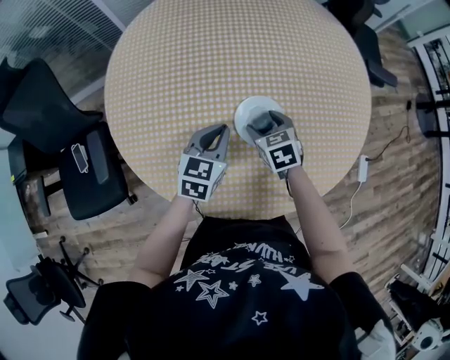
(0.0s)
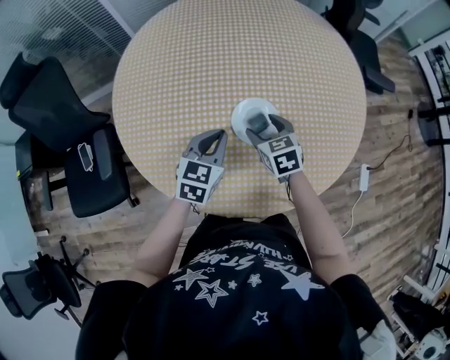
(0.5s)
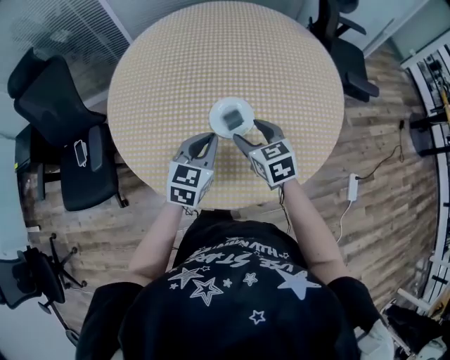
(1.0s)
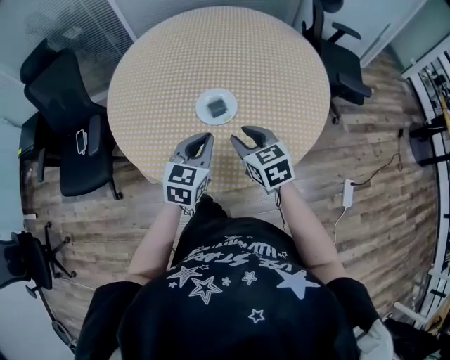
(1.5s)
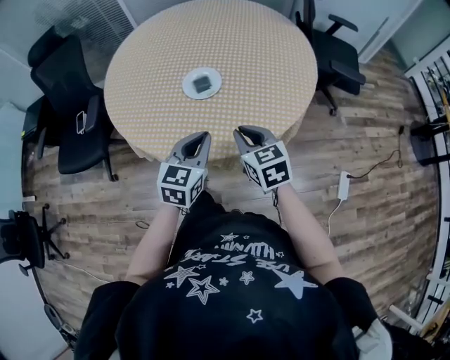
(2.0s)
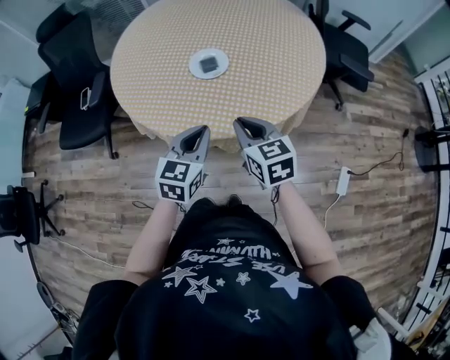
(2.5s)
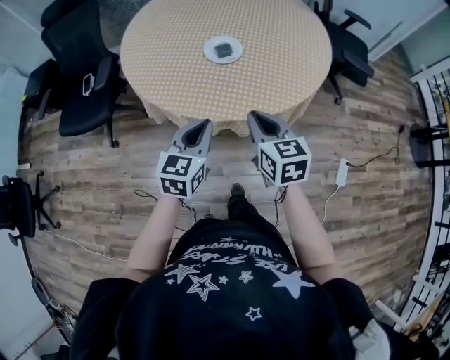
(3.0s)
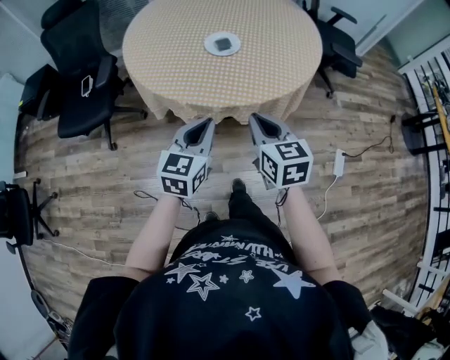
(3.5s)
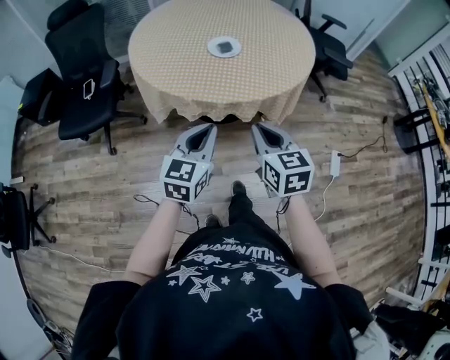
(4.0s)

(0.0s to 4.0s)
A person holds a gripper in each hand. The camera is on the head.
0.0s - 2.0s: The left gripper moves backward and to the right, roughly 30 cm. Meanwhile the right gripper travels backward, to the right and upward by about 30 cm, swivels about 20 degrees, and closes its fingers.
2.0s - 4.0s: The left gripper shifts some 25 cm backward and to the left, while the right gripper moves backward, roughly 25 cm.

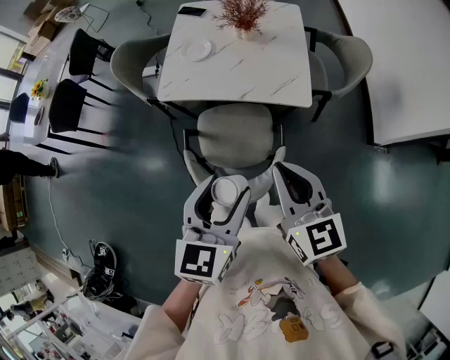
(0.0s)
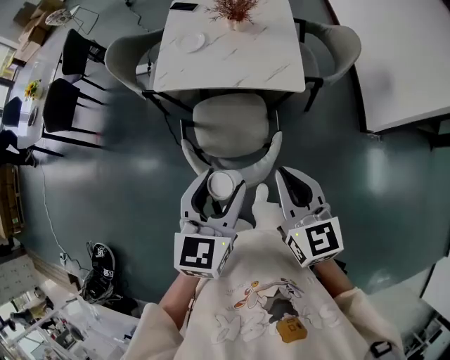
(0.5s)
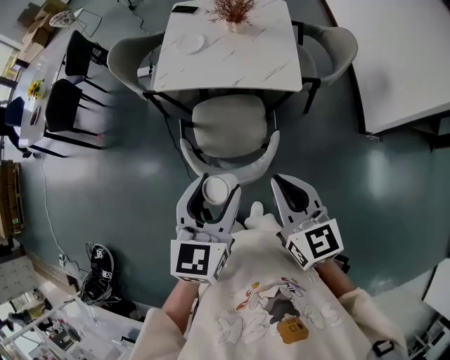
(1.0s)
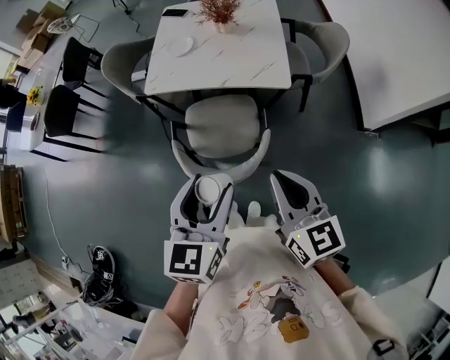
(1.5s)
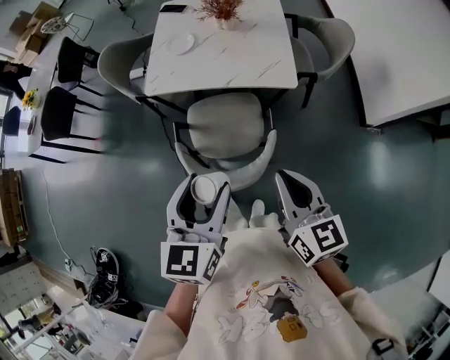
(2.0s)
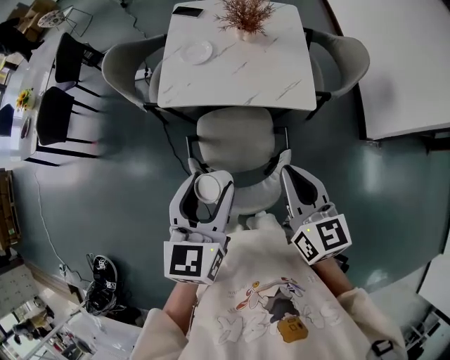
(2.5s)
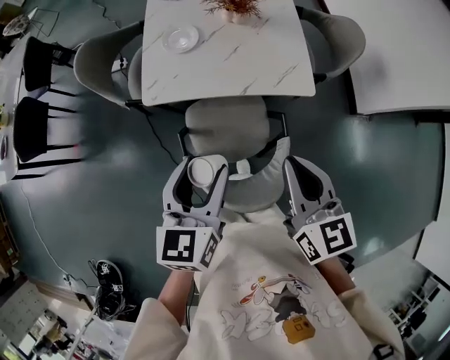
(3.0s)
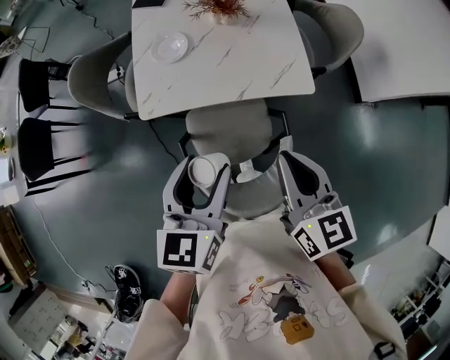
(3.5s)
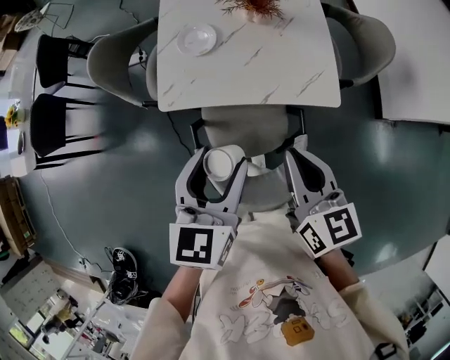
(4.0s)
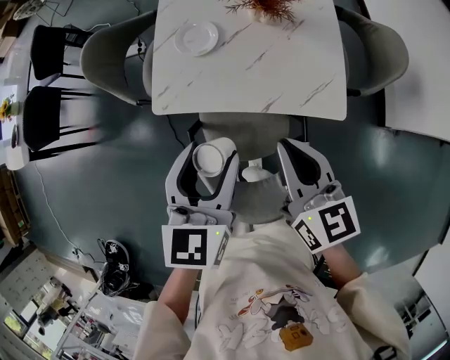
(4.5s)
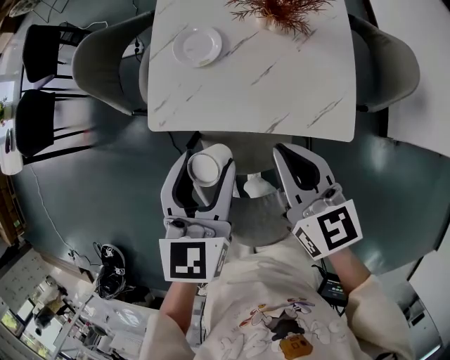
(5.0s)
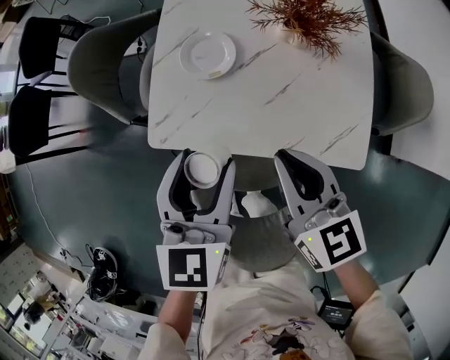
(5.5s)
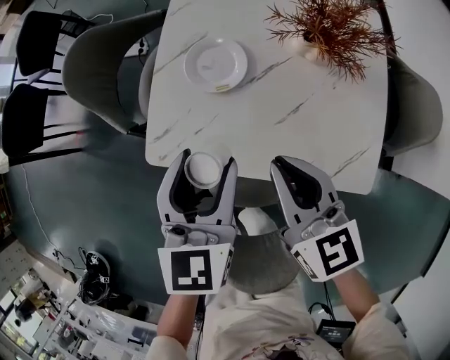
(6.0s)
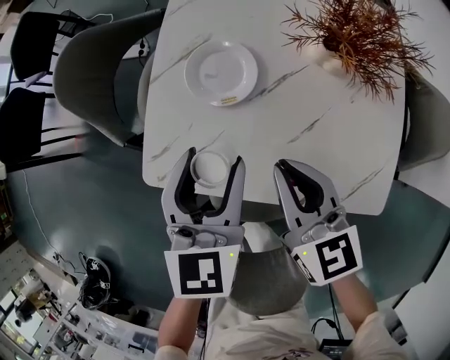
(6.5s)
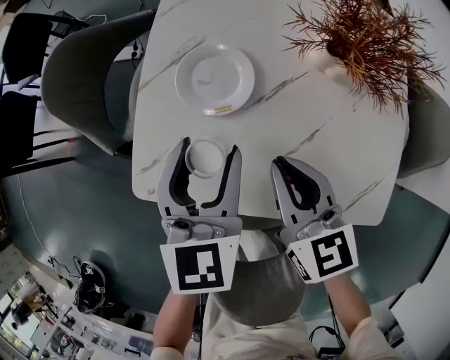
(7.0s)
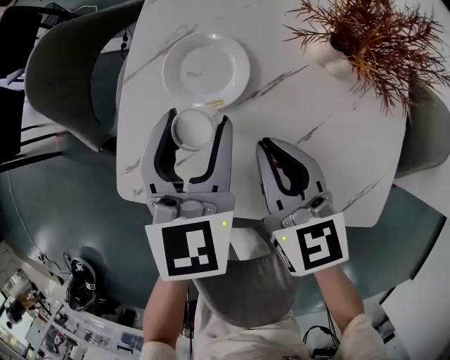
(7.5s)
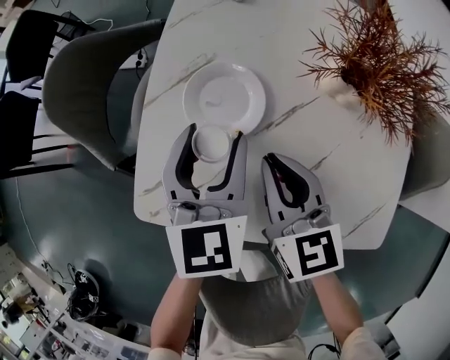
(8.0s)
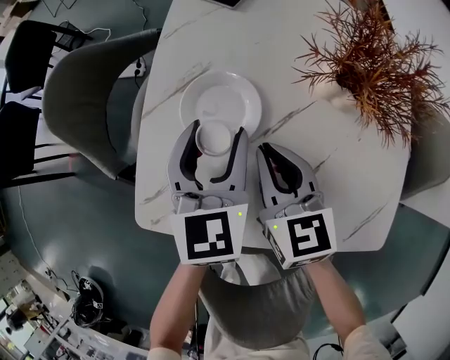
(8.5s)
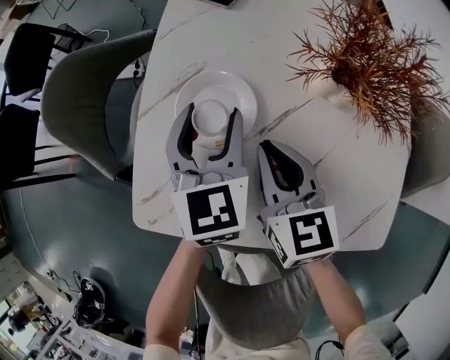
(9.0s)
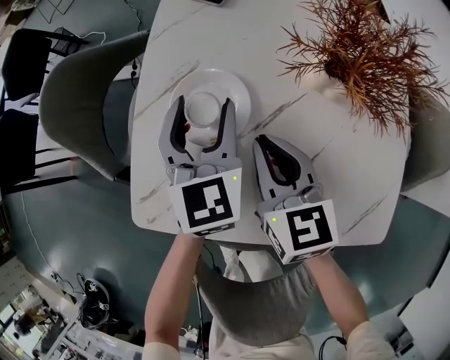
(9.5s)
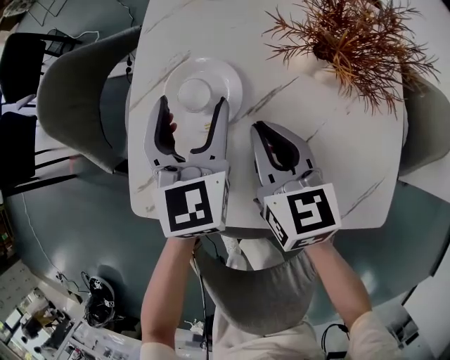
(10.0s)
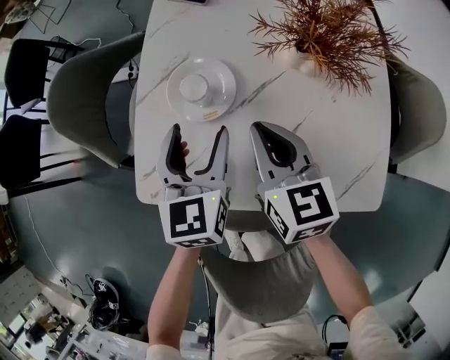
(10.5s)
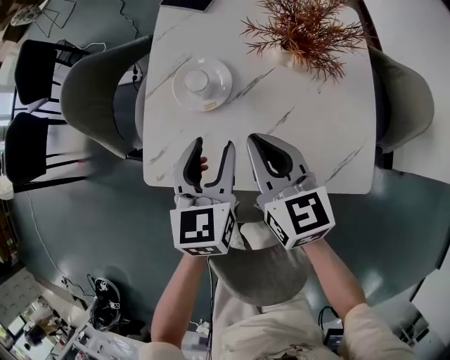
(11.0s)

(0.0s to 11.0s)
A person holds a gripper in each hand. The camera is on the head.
0.0s - 2.0s: The right gripper heads backward, covering approximately 10 cm. Meanwhile the left gripper ends up some 5 cm from where it was.
2.0s - 3.5s: Both grippers move forward and to the left, about 25 cm.
3.5s - 5.5s: Both grippers travel together forward and downward, about 25 cm. The right gripper swivels some 20 degrees.
5.5s - 7.5s: The right gripper travels downward and forward by approximately 20 cm; the left gripper shifts about 20 cm forward and downward.
7.5s - 9.0s: The two grippers go approximately 5 cm forward.
9.0s - 11.0s: The left gripper heads backward, covering approximately 15 cm, while the right gripper shifts about 15 cm upward and backward.

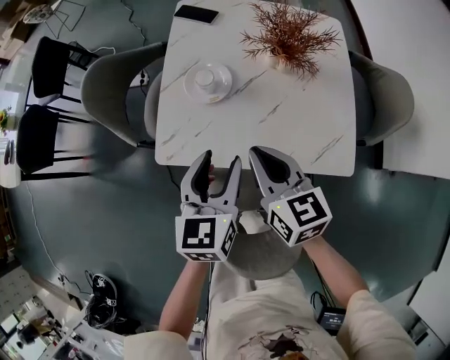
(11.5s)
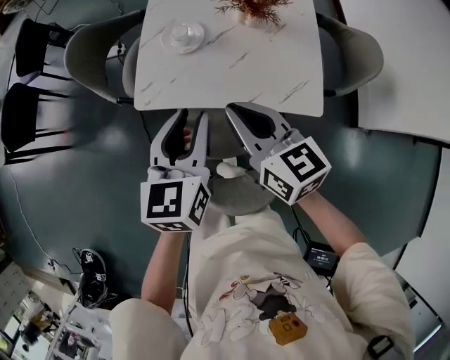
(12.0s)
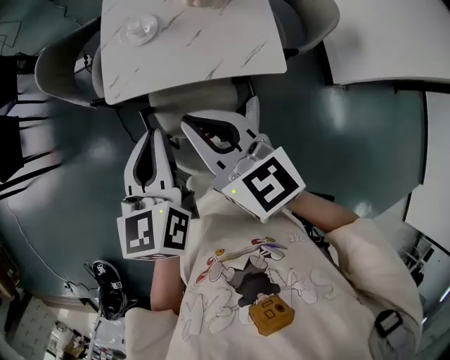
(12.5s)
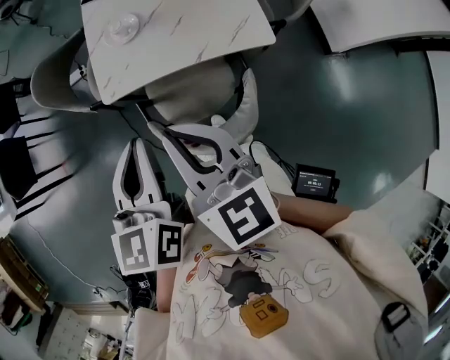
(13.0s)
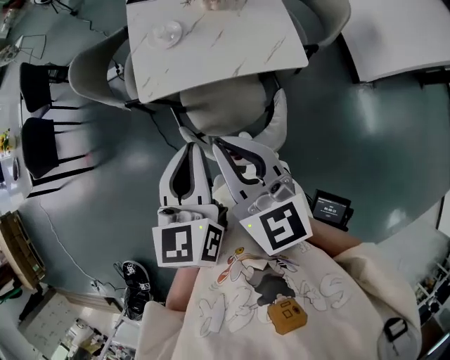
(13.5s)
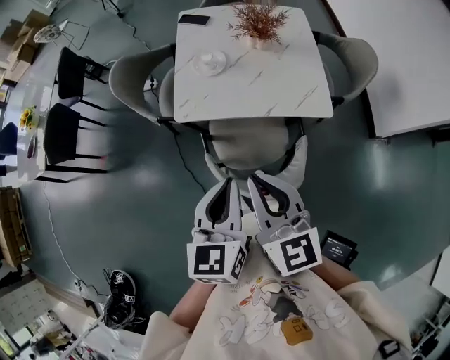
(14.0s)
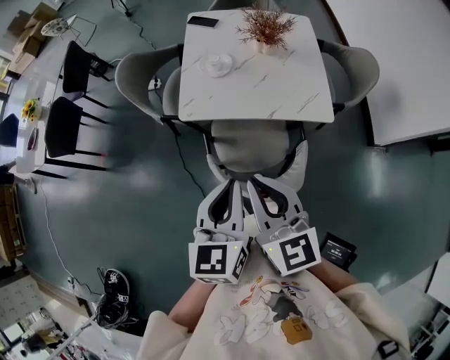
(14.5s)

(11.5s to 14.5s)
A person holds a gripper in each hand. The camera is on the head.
11.5s - 13.0s: The two grippers go approximately 30 cm backward and upward. The left gripper closes its fingers.
13.0s - 14.5s: The left gripper is displaced backward by roughly 5 cm.

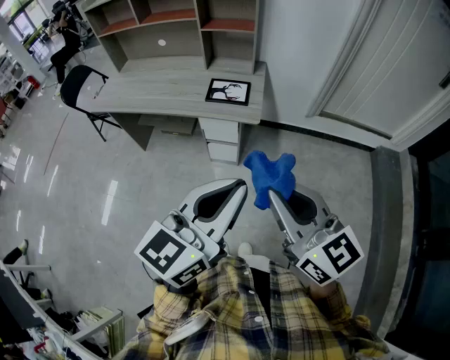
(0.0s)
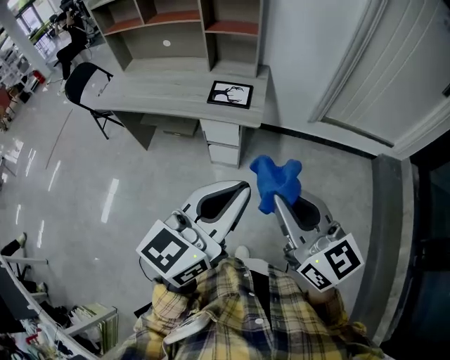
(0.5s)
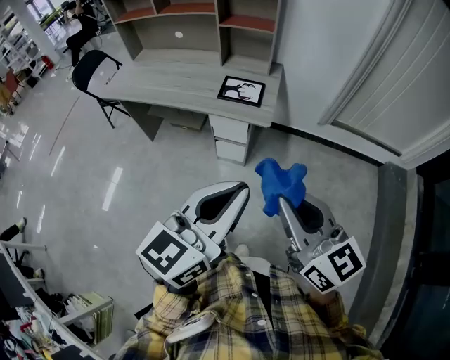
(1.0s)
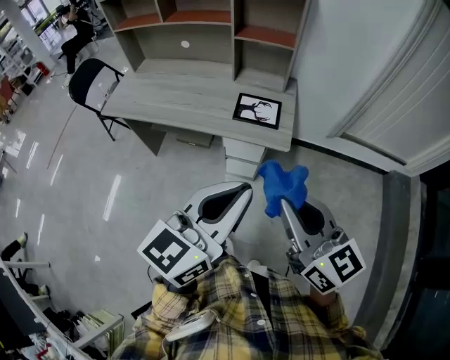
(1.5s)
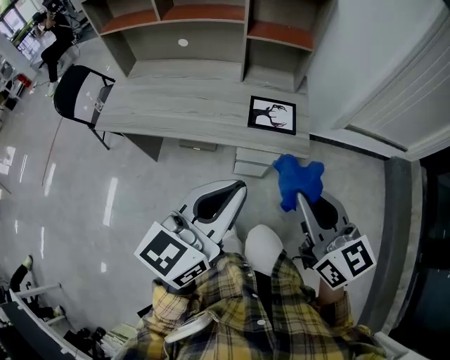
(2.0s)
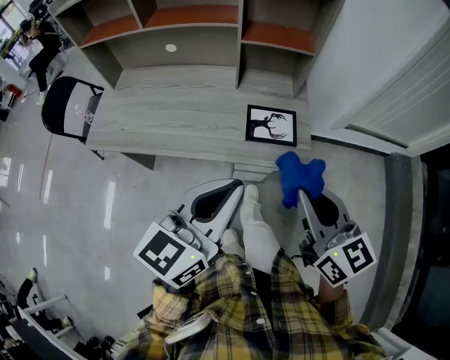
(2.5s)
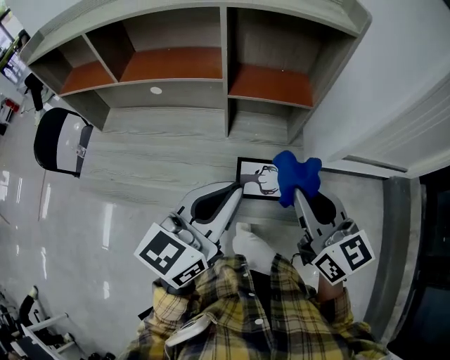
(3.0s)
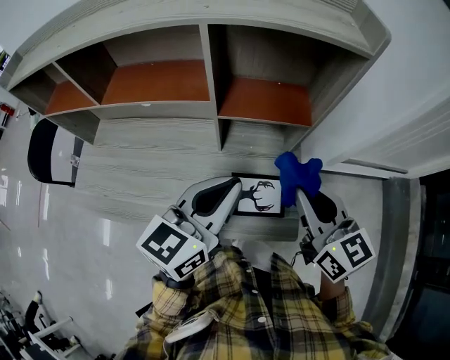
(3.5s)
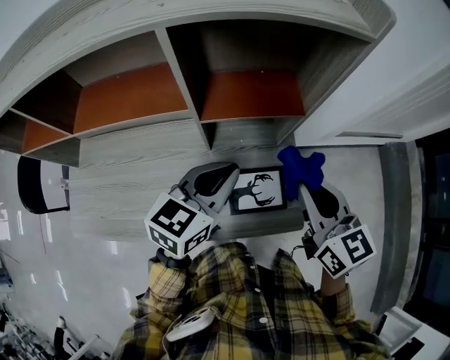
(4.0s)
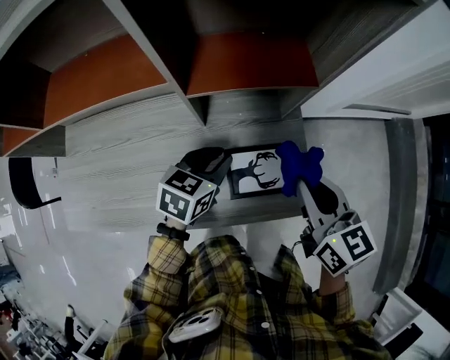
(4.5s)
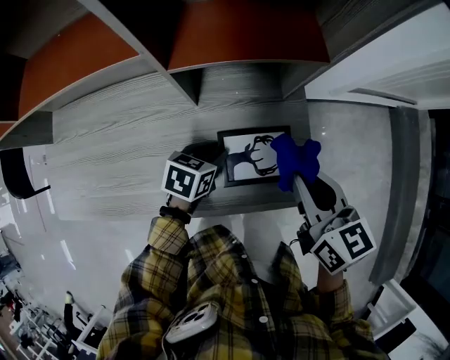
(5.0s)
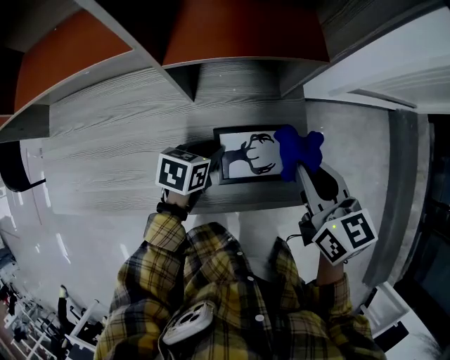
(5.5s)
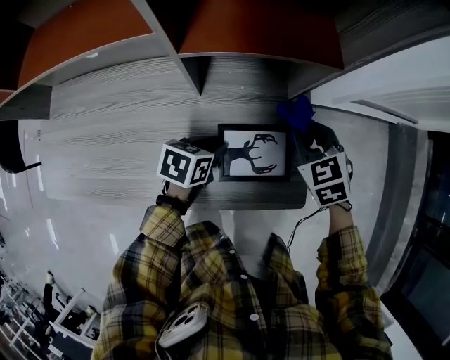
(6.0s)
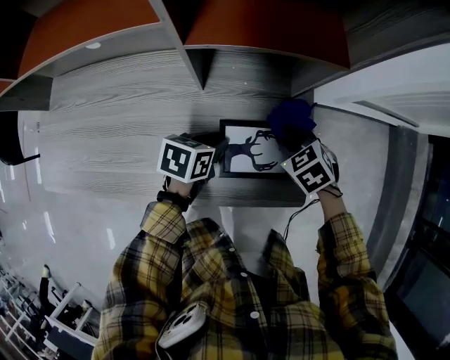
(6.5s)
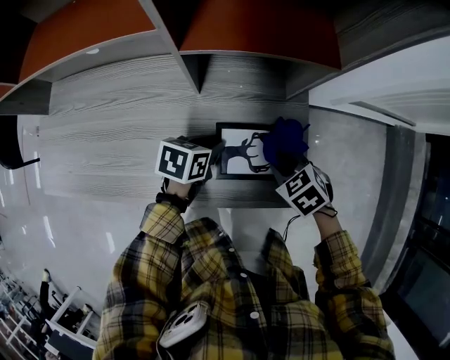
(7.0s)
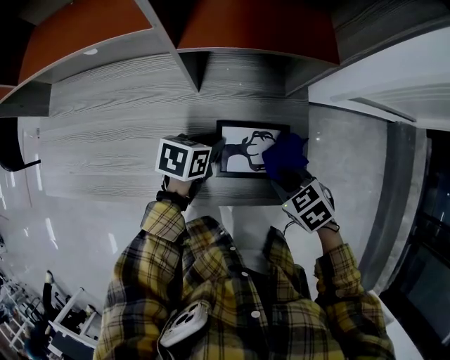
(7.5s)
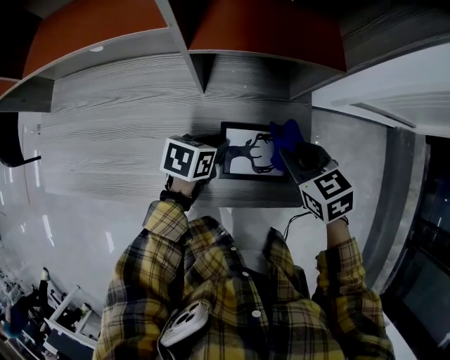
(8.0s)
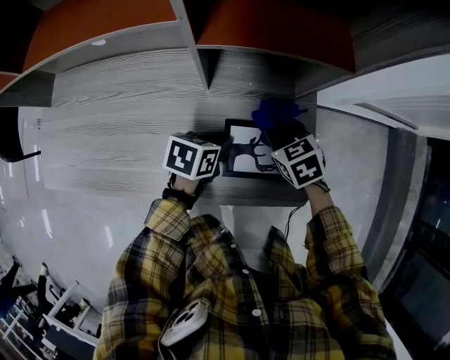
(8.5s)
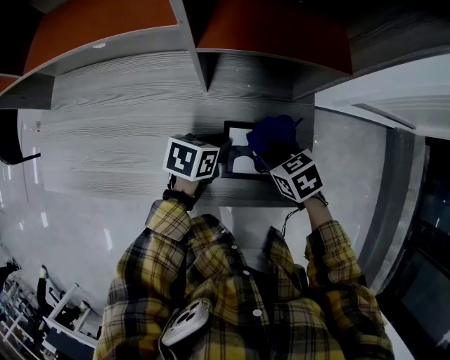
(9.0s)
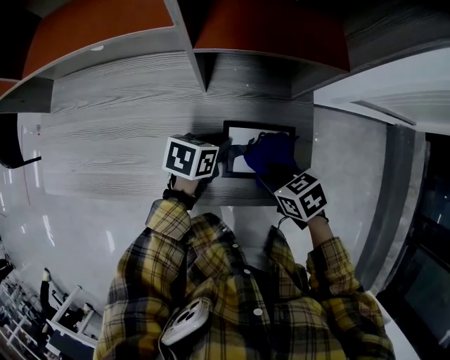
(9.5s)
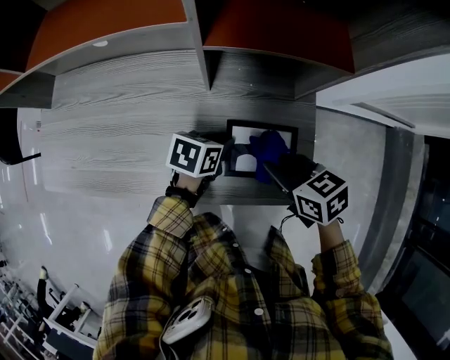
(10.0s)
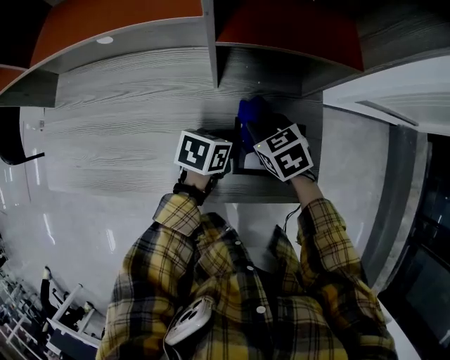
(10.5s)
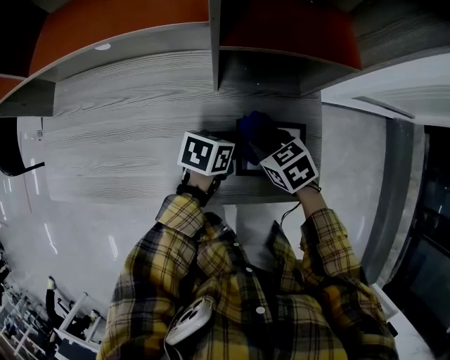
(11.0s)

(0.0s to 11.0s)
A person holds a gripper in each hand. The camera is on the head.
0.0s - 2.0s: The left gripper goes about 30 cm to the left and forward, while the right gripper shifts about 25 cm forward and to the left.
2.0s - 3.5s: The grippers both shift forward by roughly 35 cm.
3.5s - 5.5s: The right gripper travels downward by roughly 15 cm, and changes its angle by about 20 degrees. The left gripper heads downward, covering some 35 cm, tilts its fingers roughly 40 degrees downward, and opens its fingers.
5.5s - 7.5s: The right gripper is displaced downward by roughly 15 cm, and points its fingers about 30 degrees further downward.
7.5s - 9.0s: The right gripper goes upward and returns, some 10 cm each way.
9.0s - 11.0s: The right gripper moves roughly 10 cm upward and comes back.
